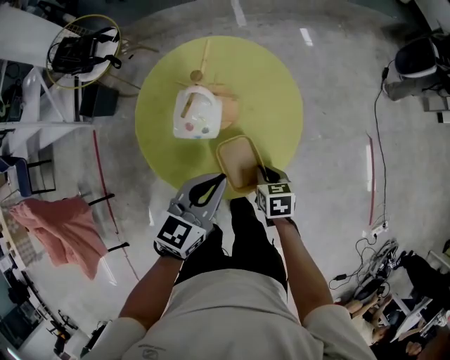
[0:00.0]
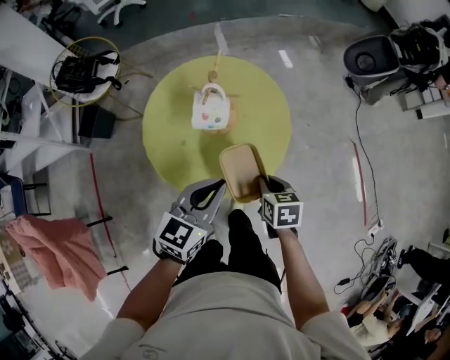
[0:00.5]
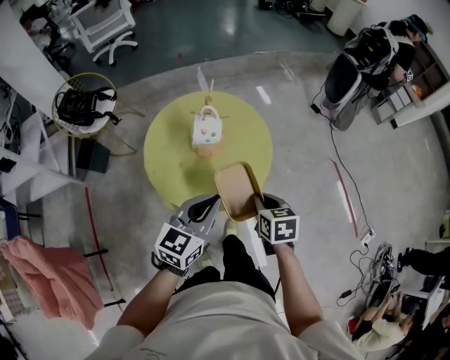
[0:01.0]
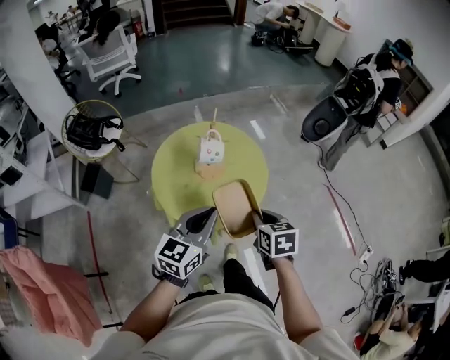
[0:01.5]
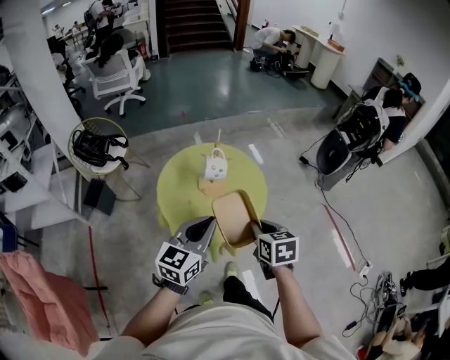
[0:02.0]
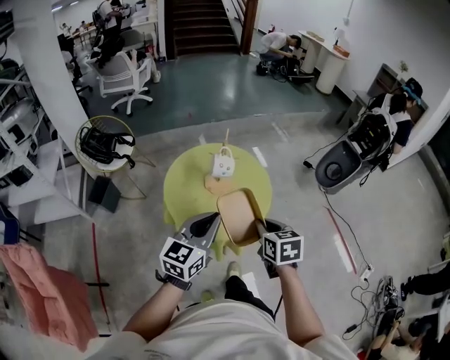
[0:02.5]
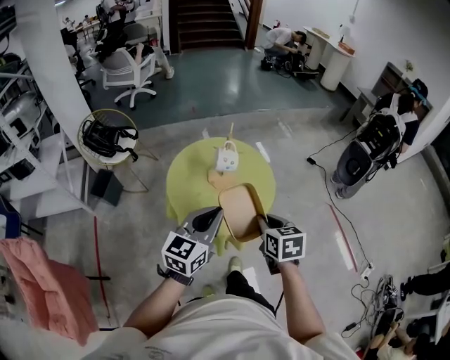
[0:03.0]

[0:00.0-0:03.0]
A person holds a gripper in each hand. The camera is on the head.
0:00.0 to 0:01.5: The grippers both shift upward and backward by about 25 cm.
0:01.5 to 0:03.0: The right gripper heads upward, covering approximately 5 cm. The left gripper ends up approximately 5 cm from where it was.

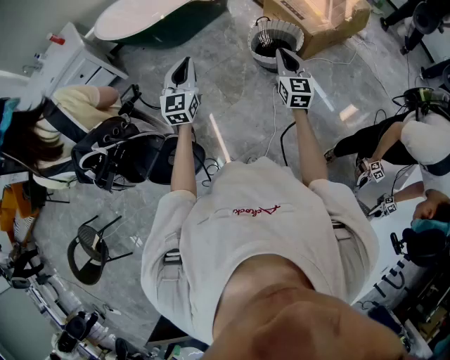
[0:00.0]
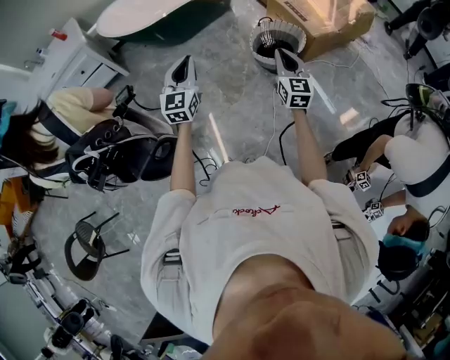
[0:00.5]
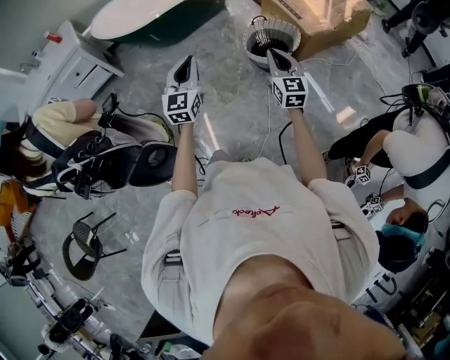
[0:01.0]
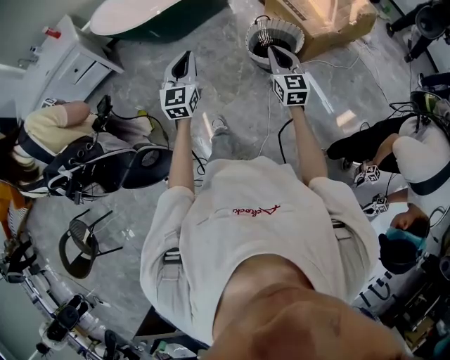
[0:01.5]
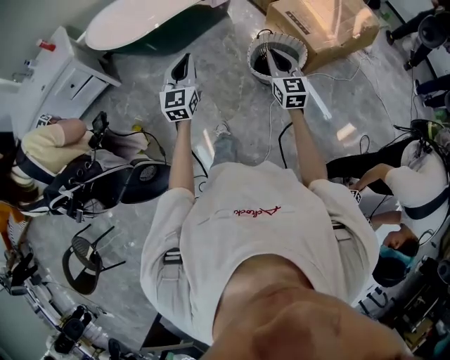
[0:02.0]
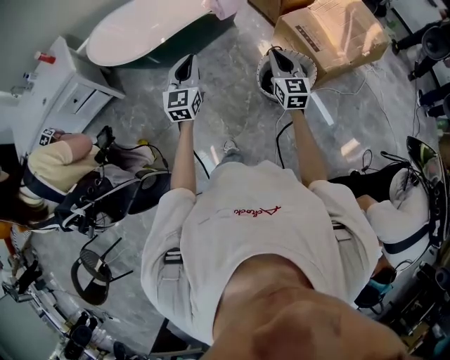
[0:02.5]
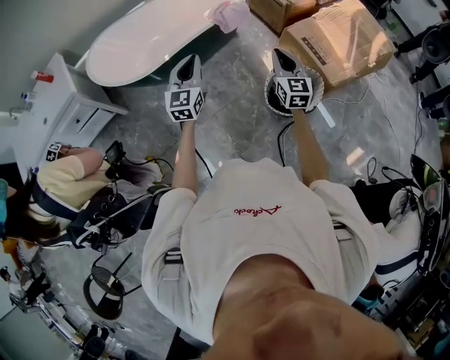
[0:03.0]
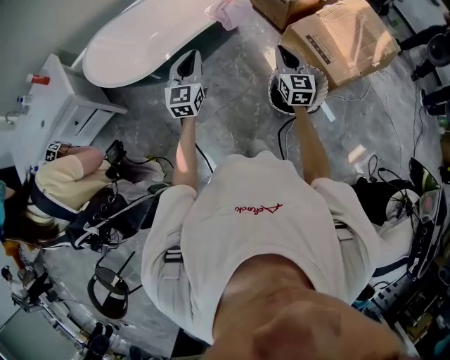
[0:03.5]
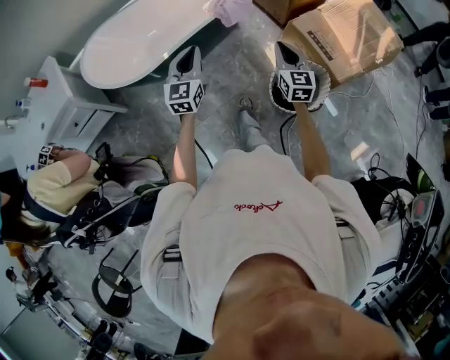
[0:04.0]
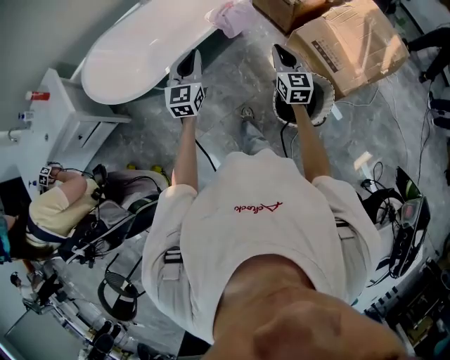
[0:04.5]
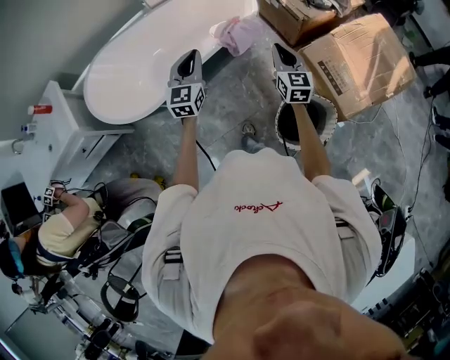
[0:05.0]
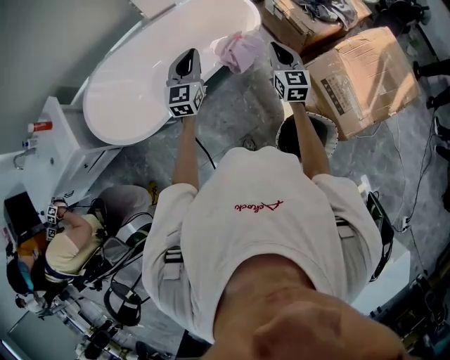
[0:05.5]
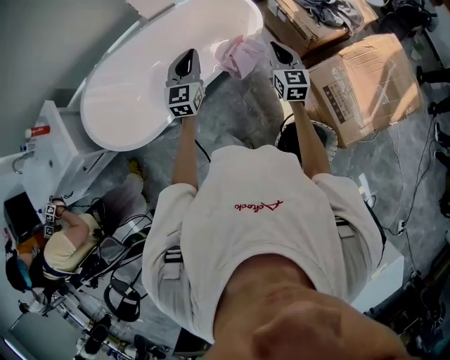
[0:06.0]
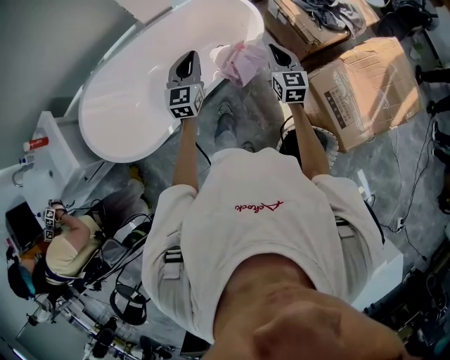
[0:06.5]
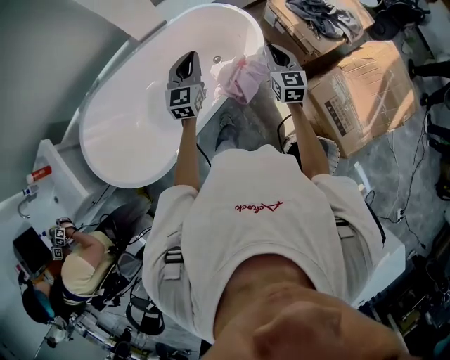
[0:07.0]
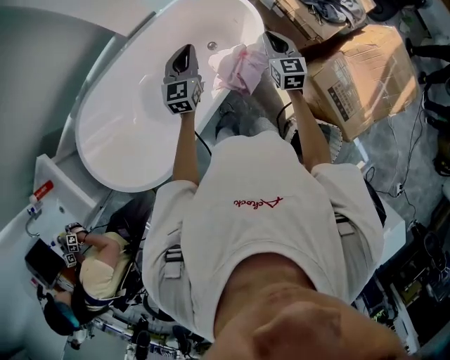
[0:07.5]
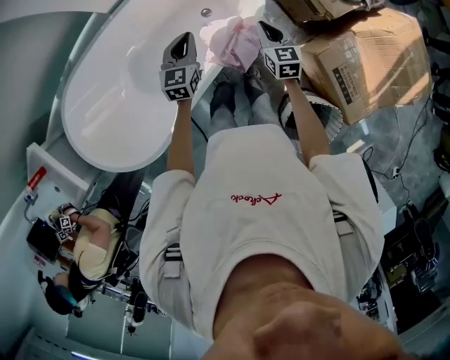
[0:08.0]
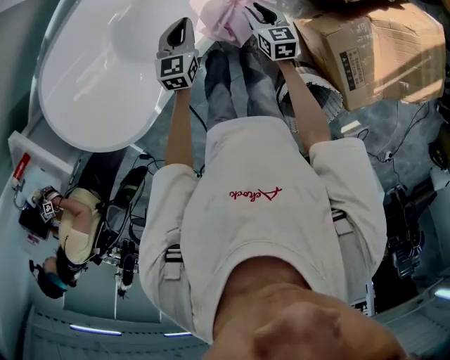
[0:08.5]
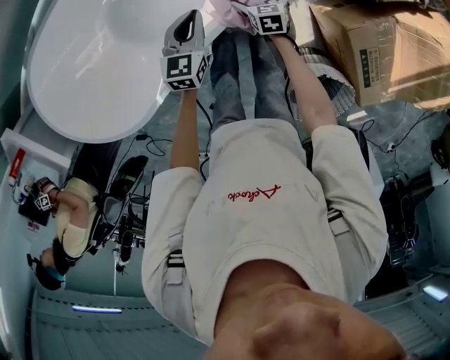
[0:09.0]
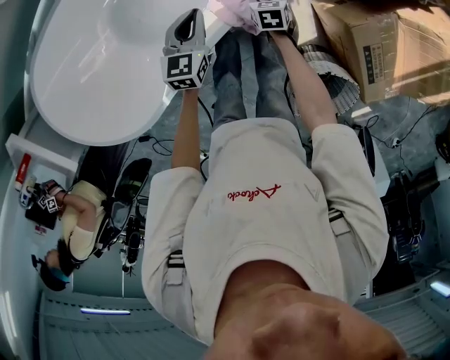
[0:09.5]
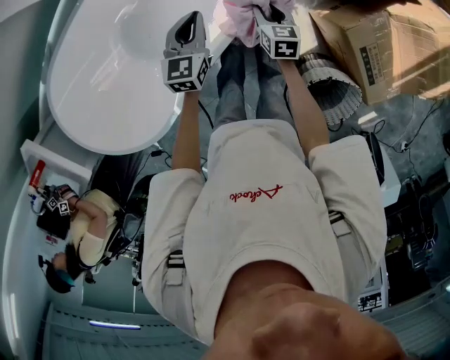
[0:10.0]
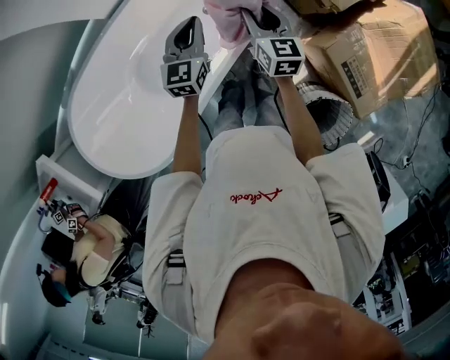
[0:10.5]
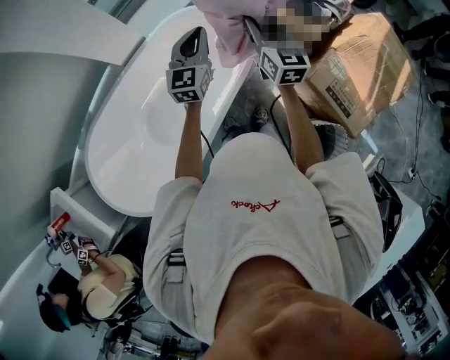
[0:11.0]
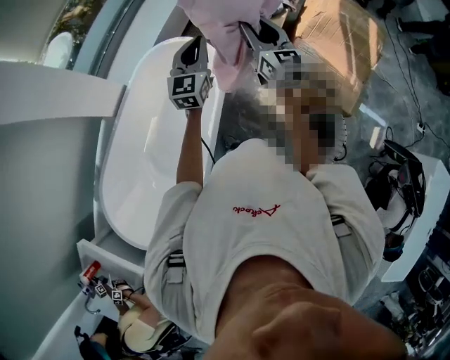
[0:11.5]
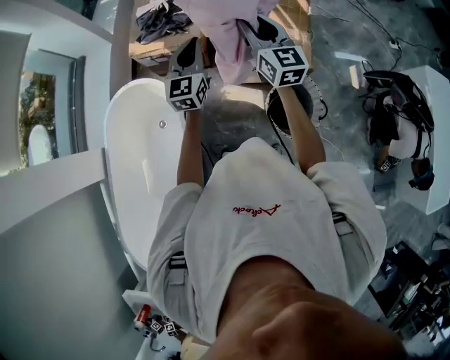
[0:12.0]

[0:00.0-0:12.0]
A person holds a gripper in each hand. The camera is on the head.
0:00.0 to 0:02.0: Both grippers travel together forward, about 20 cm.
0:02.0 to 0:04.0: The two grippers go some 35 cm forward.
0:04.0 to 0:06.0: Both grippers are carried forward, some 40 cm.
0:06.0 to 0:08.0: The grippers both shift forward and downward by roughly 30 cm. The left gripper rotates approximately 20 degrees, while the right gripper rotates some 20 degrees.
0:08.0 to 0:10.0: The left gripper travels downward by some 10 cm. The right gripper moves downward, about 15 cm, and opens and closes again.
0:10.0 to 0:12.0: The two grippers travel together, approximately 40 cm. The right gripper heads upward, covering approximately 50 cm, and tilts its fingers approximately 50 degrees upward; the left gripper changes its angle by about 60 degrees.

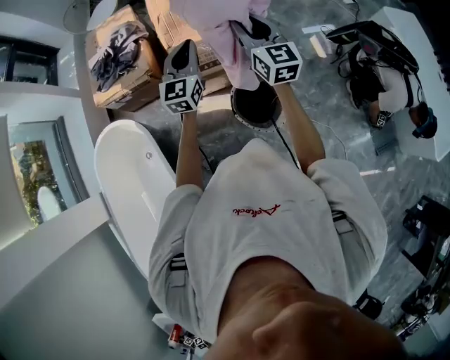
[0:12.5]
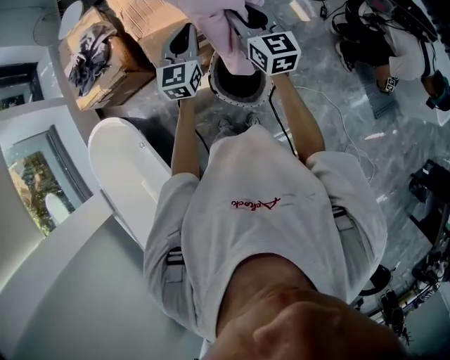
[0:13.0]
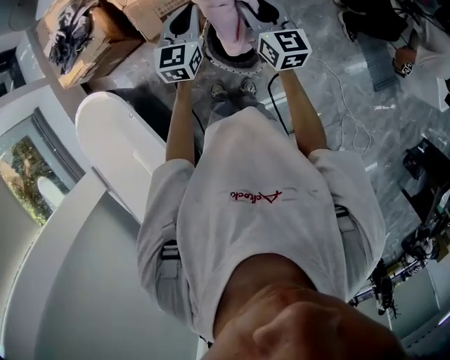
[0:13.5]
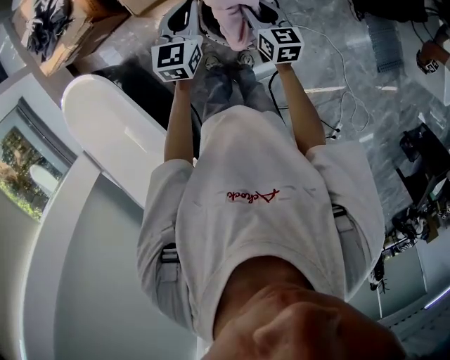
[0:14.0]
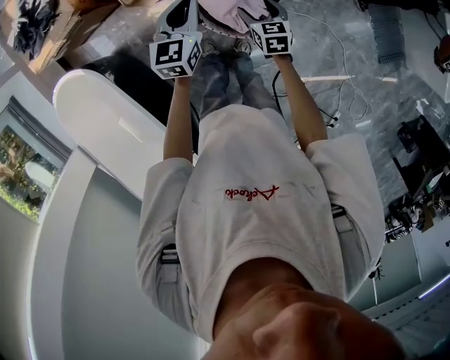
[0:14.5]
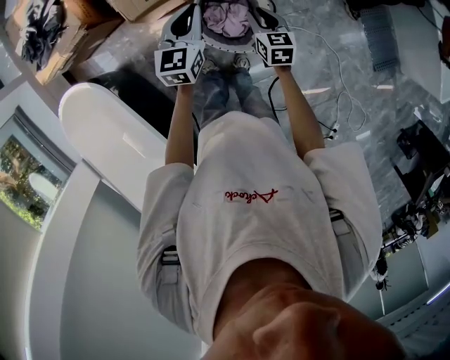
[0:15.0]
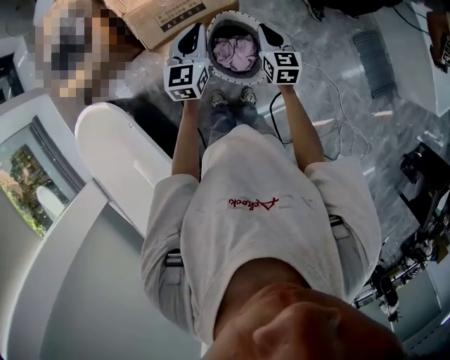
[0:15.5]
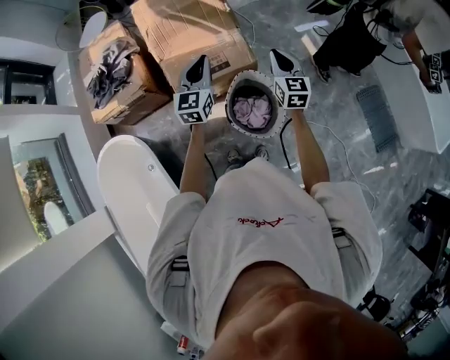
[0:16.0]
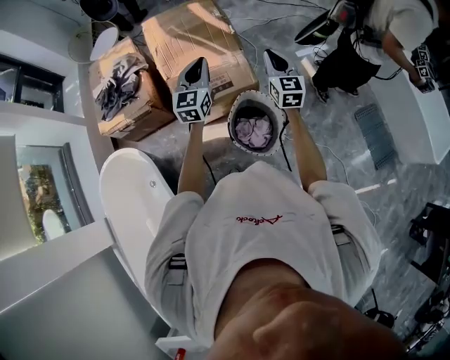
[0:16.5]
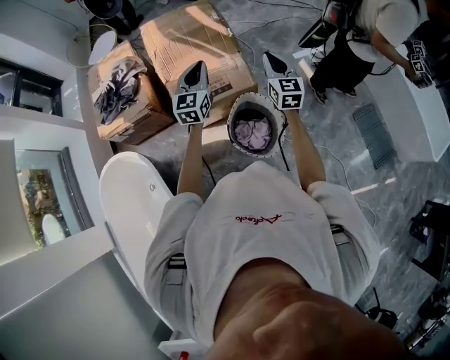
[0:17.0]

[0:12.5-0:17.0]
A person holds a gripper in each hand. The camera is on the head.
0:12.5 to 0:14.5: The left gripper moves downward and to the right, about 25 cm, and swivels about 30 degrees. The right gripper moves downward, about 40 cm, tips its fingers downward by approximately 50 degrees, and opens up.
0:14.5 to 0:17.0: The right gripper moves upward, some 35 cm, tilts its fingers some 40 degrees upward, and closes up. The left gripper goes some 25 cm upward, and swivels some 20 degrees.

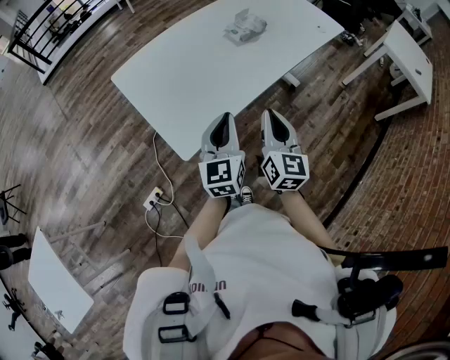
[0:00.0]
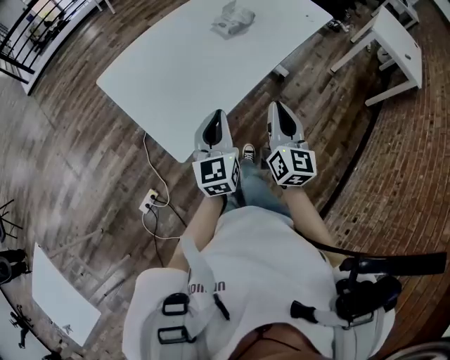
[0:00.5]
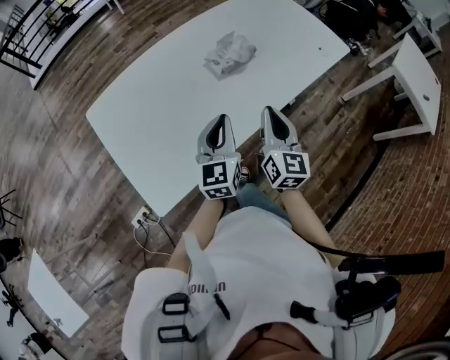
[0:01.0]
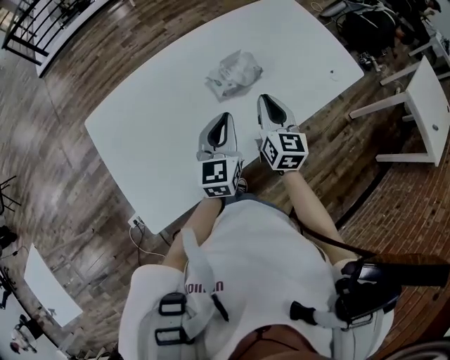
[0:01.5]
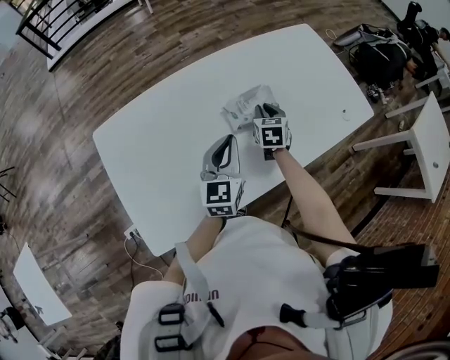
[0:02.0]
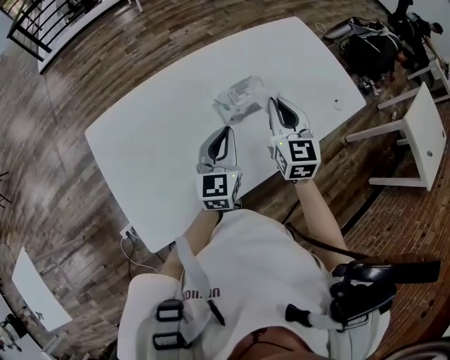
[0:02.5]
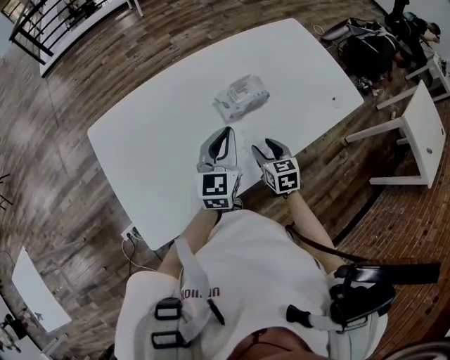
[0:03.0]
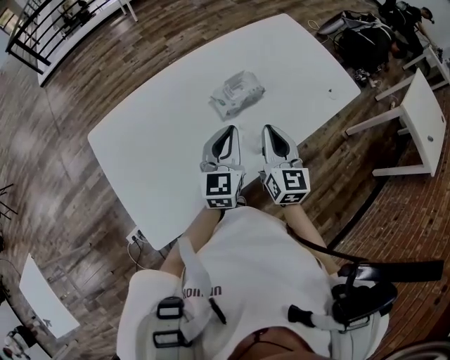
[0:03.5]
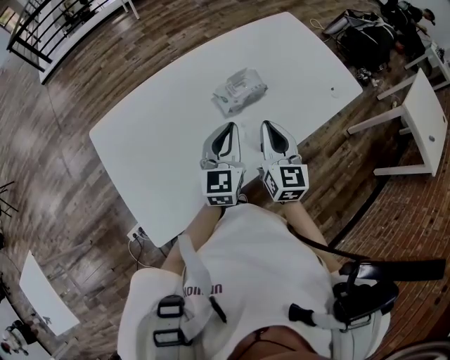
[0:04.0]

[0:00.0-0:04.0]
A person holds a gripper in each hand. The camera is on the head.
0:00.0 to 0:02.0: The two grippers go about 40 cm forward. The right gripper tilts its fingers some 30 degrees downward.
0:02.0 to 0:04.0: The right gripper goes up and down, some 20 cm each way, reversing 2 times, swivels some 30 degrees, and opens, then closes again.

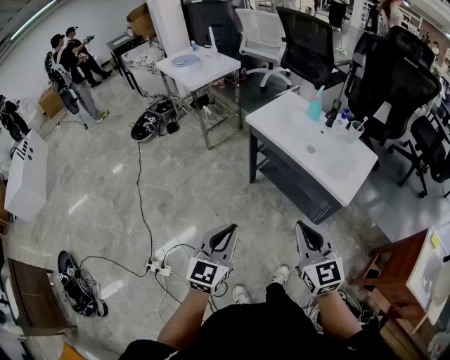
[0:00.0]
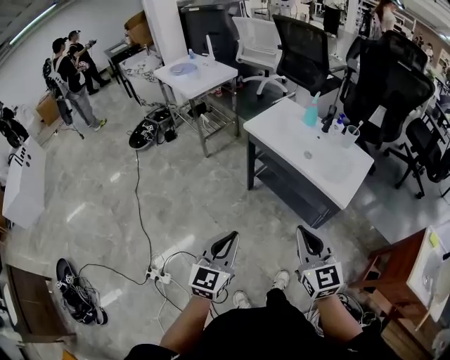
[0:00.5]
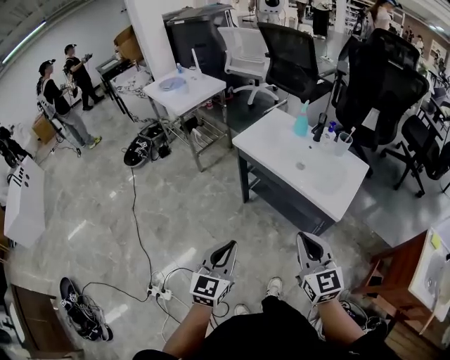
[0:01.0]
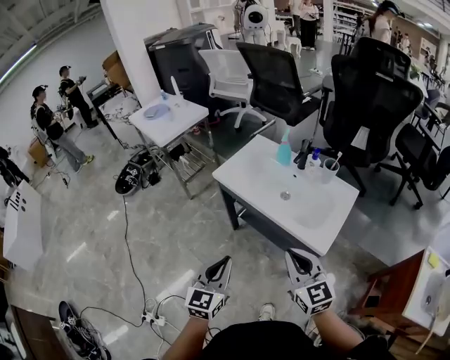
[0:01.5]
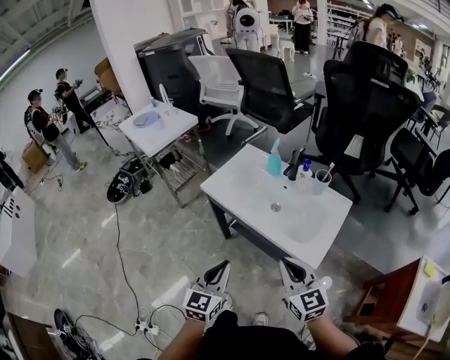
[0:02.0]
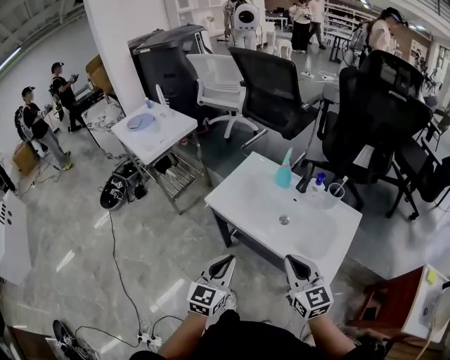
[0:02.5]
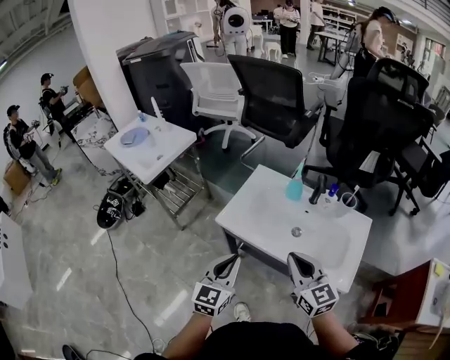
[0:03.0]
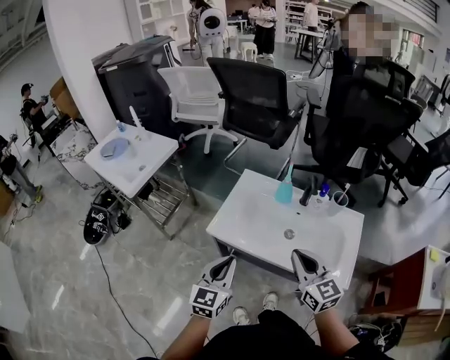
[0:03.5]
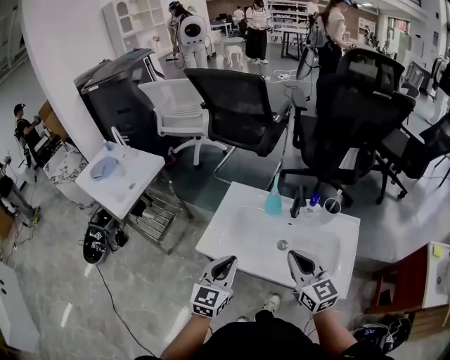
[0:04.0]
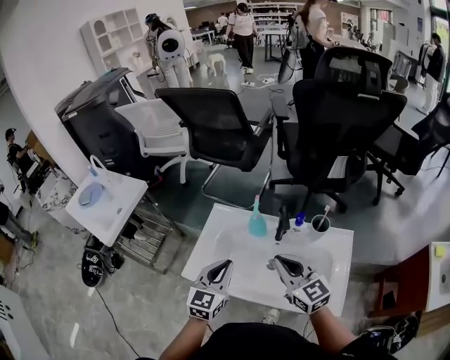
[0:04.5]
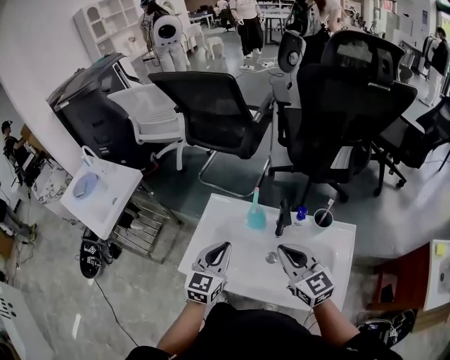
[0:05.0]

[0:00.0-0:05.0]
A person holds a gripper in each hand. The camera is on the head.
0:00.0 to 0:02.5: The two grippers go some 30 cm forward.
0:02.5 to 0:05.0: Both grippers move forward, some 30 cm.
